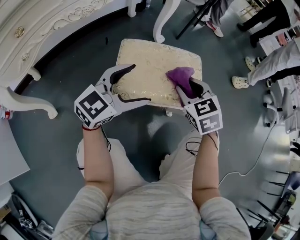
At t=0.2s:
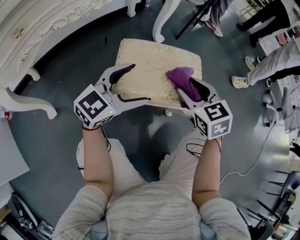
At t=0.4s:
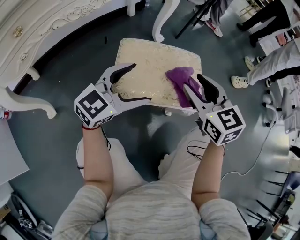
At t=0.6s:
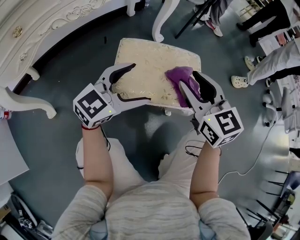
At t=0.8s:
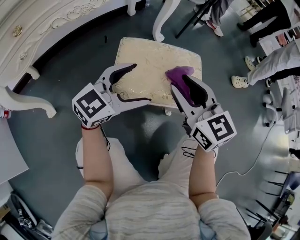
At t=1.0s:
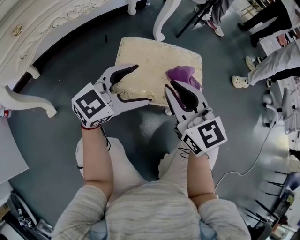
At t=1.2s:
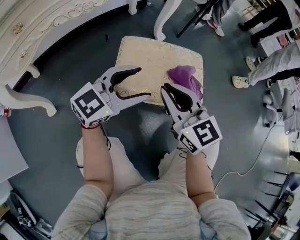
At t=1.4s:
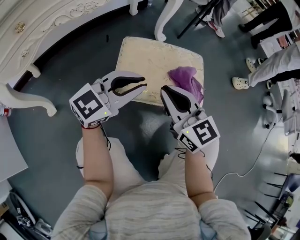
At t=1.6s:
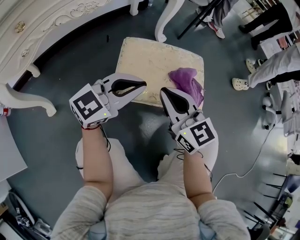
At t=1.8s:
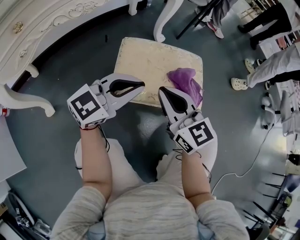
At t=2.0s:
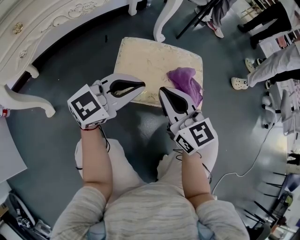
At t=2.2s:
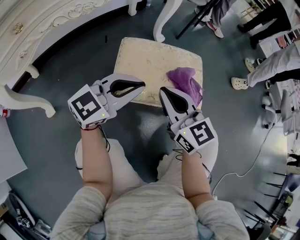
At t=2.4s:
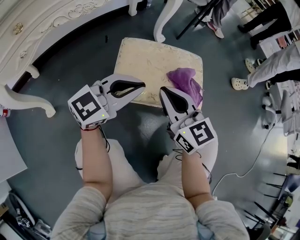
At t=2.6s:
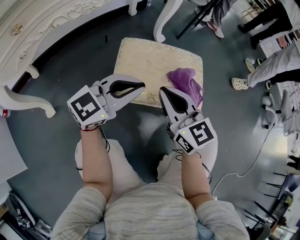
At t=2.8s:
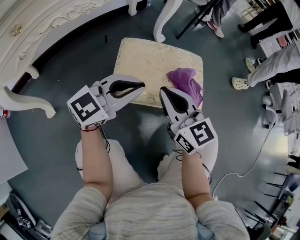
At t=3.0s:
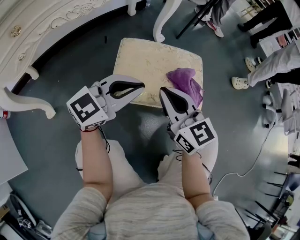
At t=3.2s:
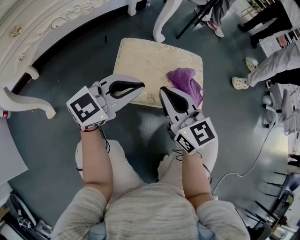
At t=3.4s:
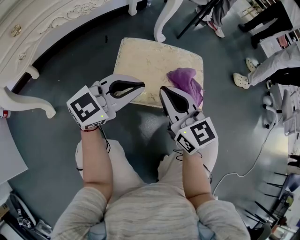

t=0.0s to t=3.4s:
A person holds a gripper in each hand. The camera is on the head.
t=0.0s to t=1.6s: The right gripper moves to the left and backward, some 10 cm, points its fingers about 30 degrees further upward, and closes its fingers. The left gripper closes its fingers.
t=1.6s to t=3.4s: Both grippers stay about where they are.

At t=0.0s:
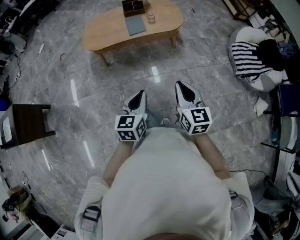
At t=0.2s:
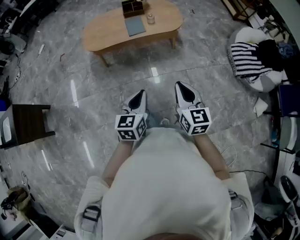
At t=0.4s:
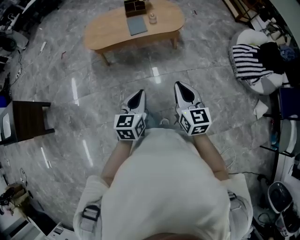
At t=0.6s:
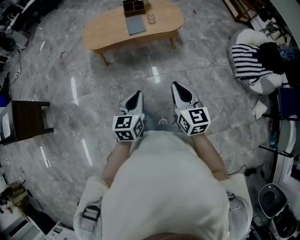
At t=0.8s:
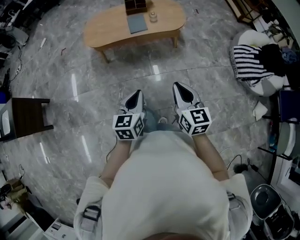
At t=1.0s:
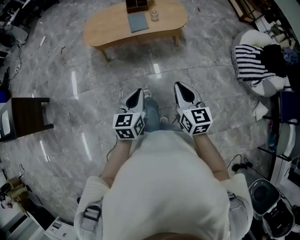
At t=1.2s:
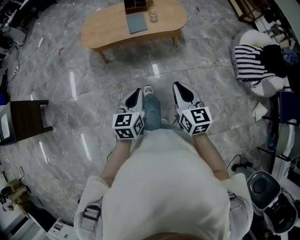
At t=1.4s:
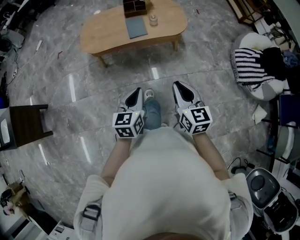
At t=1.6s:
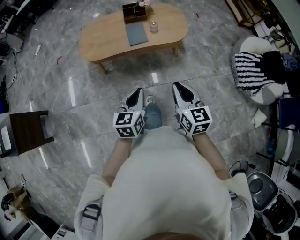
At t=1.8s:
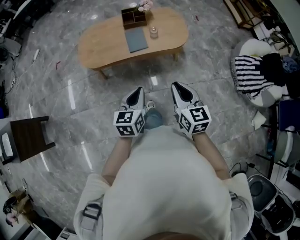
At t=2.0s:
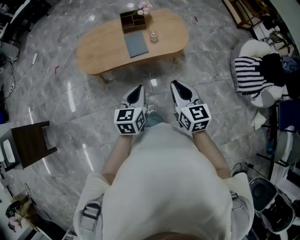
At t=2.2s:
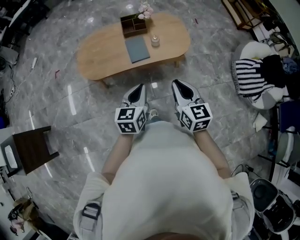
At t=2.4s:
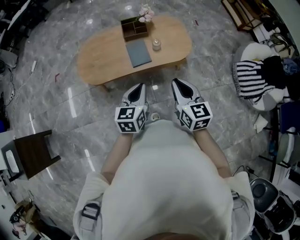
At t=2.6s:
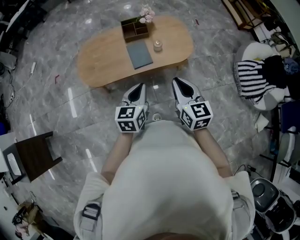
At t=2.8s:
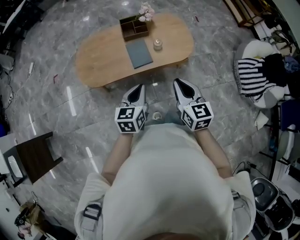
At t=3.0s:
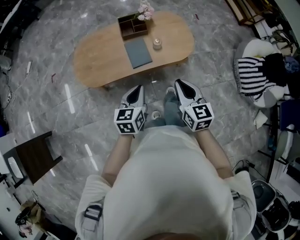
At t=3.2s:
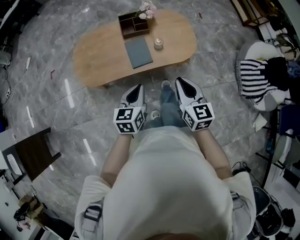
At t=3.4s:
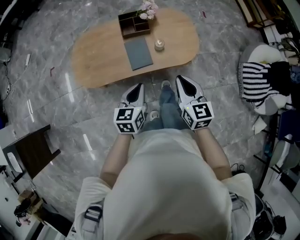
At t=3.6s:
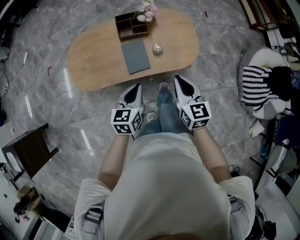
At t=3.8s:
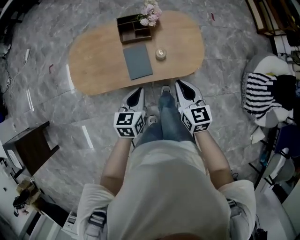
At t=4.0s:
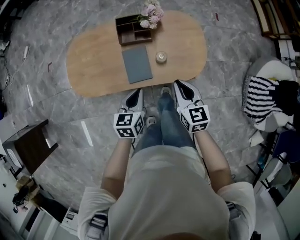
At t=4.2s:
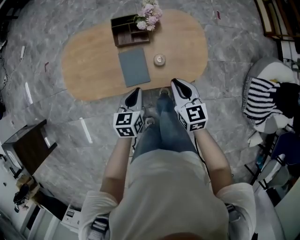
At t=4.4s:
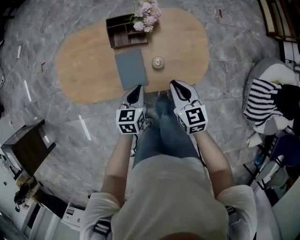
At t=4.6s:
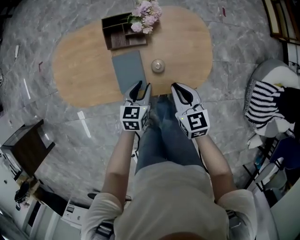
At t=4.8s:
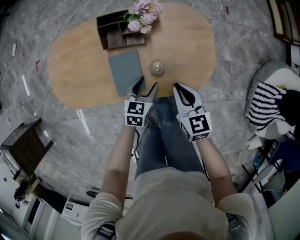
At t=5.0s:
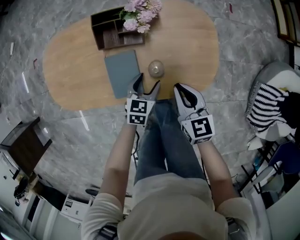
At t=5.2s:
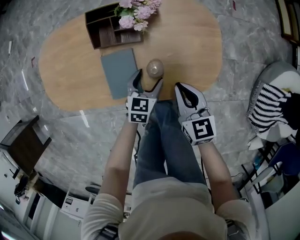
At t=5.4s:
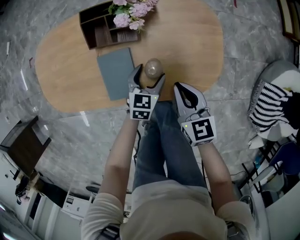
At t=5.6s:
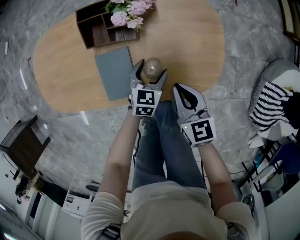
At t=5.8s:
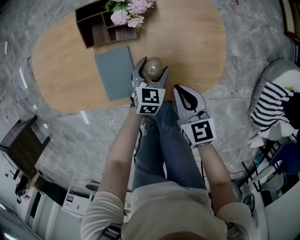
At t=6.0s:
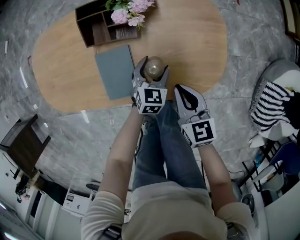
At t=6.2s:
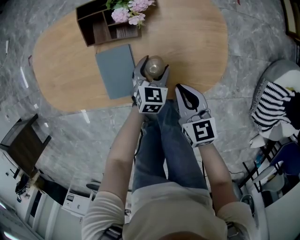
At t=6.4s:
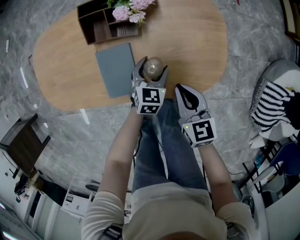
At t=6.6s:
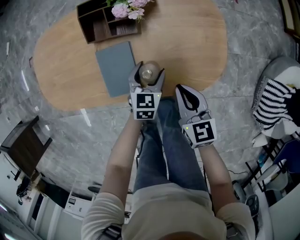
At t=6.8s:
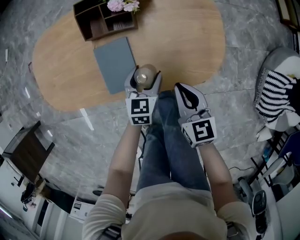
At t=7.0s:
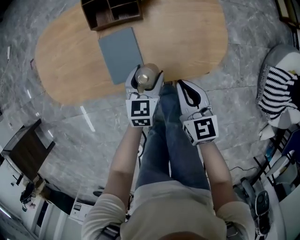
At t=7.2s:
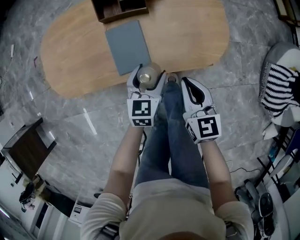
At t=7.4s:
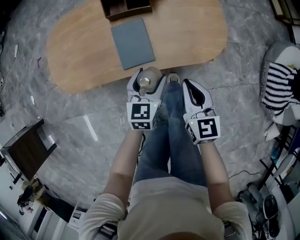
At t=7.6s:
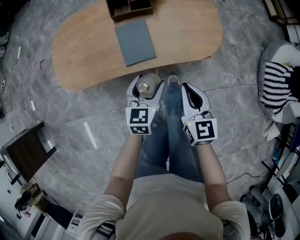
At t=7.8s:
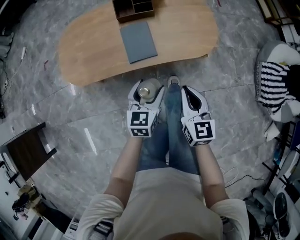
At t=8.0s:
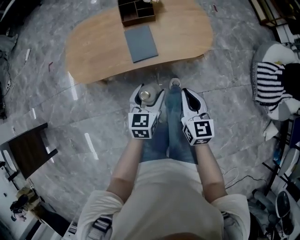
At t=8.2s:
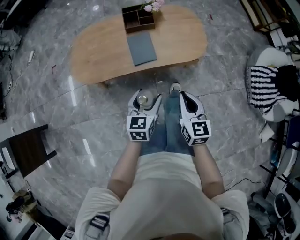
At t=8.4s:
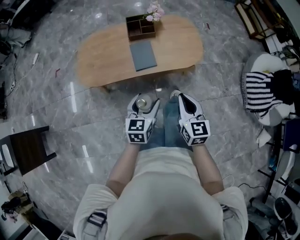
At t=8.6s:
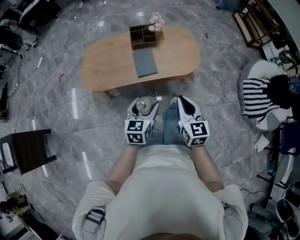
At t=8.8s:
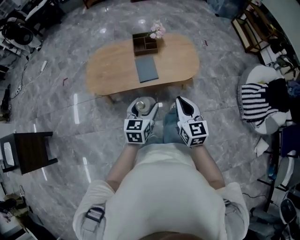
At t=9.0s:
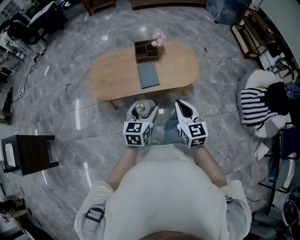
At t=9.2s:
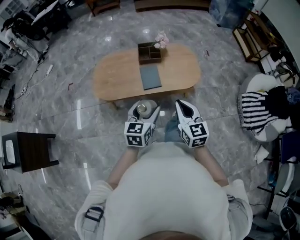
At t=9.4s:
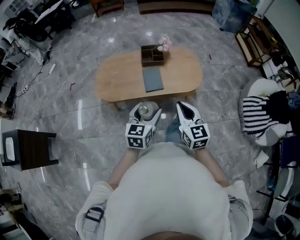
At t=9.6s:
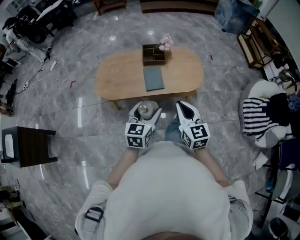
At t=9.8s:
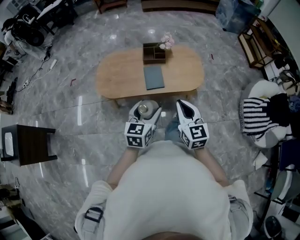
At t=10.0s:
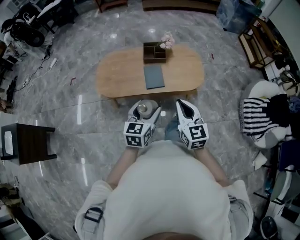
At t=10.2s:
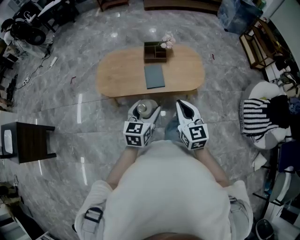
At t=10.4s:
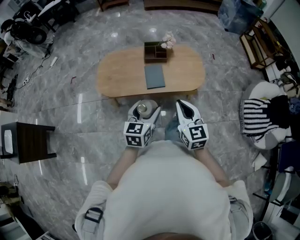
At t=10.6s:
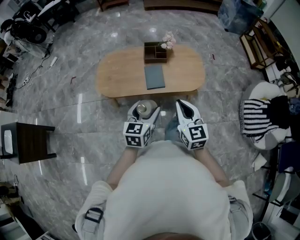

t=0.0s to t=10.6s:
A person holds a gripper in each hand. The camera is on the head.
t=0.0s to t=1.6s: The grippers both shift forward by some 15 cm.
t=1.6s to t=3.0s: Both grippers move forward, some 25 cm.
t=3.0s to t=4.6s: The two grippers go about 35 cm forward and downward.
t=4.6s to t=6.0s: The right gripper travels downward by some 10 cm; the left gripper travels downward, to the right and forward by some 20 cm, and opens its fingers.
t=6.0s to t=7.6s: The right gripper shifts approximately 20 cm backward and upward. The left gripper goes about 30 cm backward, upward and to the left.
t=7.6s to t=9.0s: Both grippers travel together upward and backward, approximately 30 cm.
t=9.0s to t=10.6s: There are only small adjustments of the grippers.

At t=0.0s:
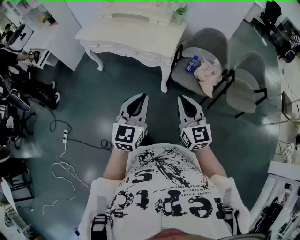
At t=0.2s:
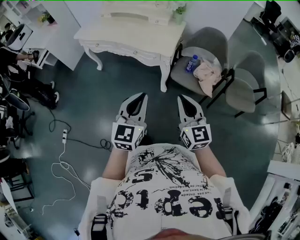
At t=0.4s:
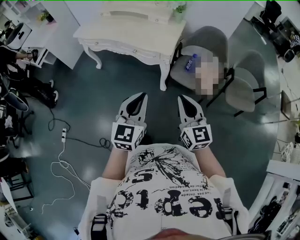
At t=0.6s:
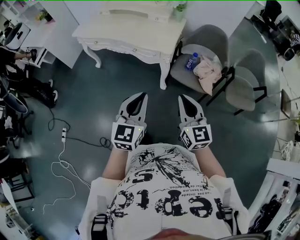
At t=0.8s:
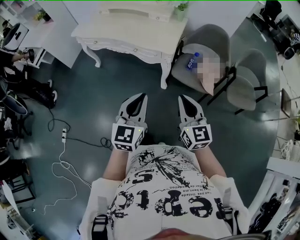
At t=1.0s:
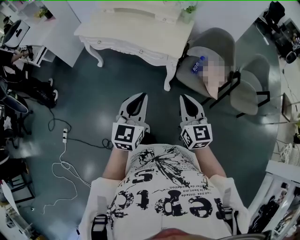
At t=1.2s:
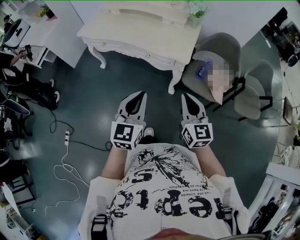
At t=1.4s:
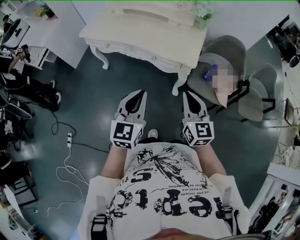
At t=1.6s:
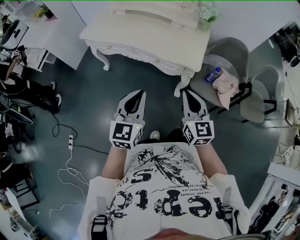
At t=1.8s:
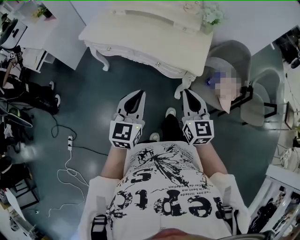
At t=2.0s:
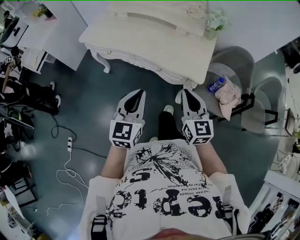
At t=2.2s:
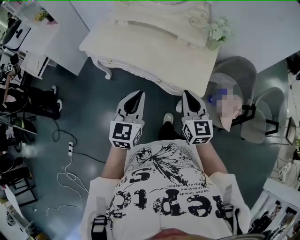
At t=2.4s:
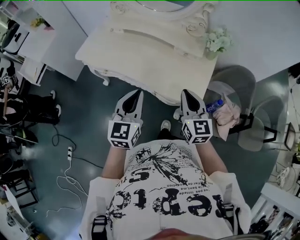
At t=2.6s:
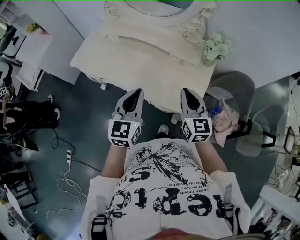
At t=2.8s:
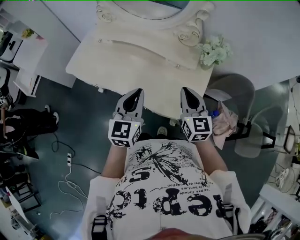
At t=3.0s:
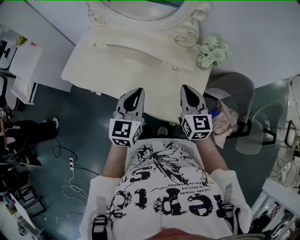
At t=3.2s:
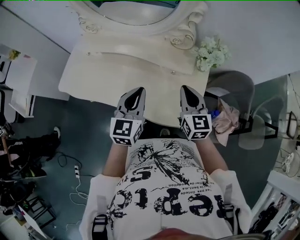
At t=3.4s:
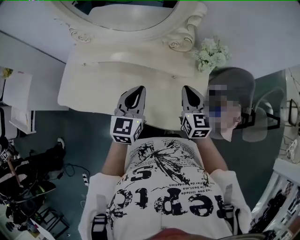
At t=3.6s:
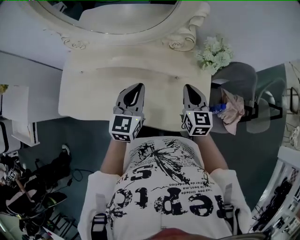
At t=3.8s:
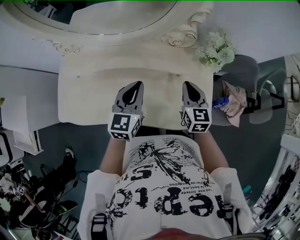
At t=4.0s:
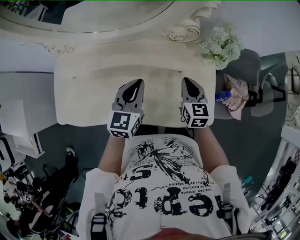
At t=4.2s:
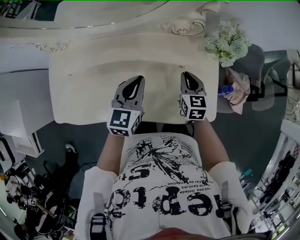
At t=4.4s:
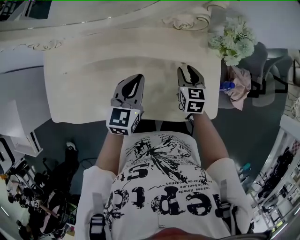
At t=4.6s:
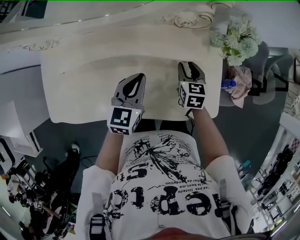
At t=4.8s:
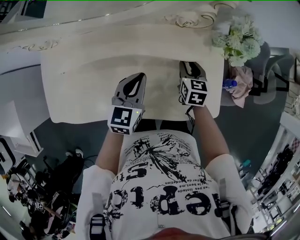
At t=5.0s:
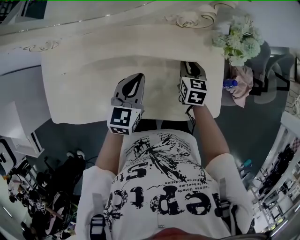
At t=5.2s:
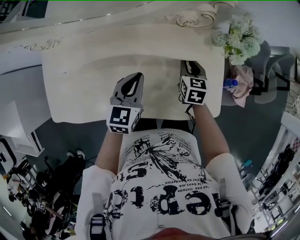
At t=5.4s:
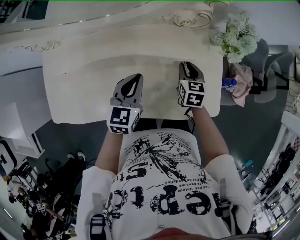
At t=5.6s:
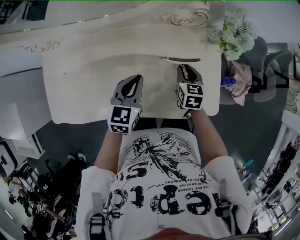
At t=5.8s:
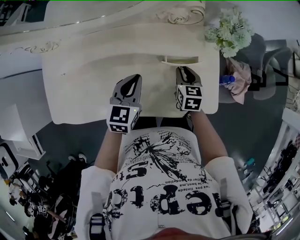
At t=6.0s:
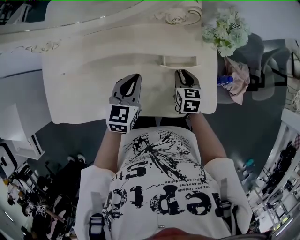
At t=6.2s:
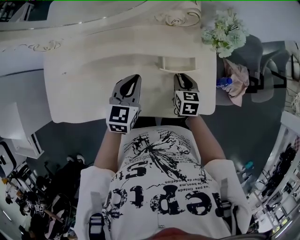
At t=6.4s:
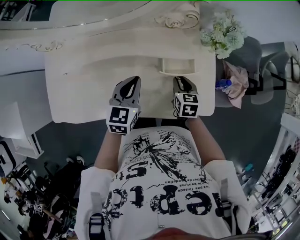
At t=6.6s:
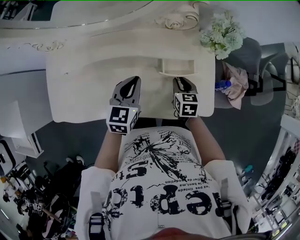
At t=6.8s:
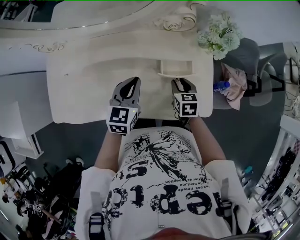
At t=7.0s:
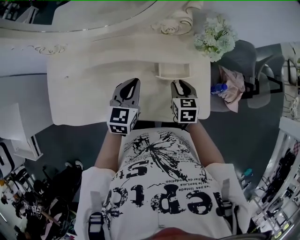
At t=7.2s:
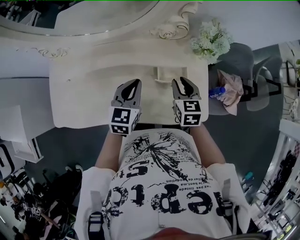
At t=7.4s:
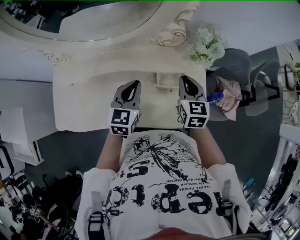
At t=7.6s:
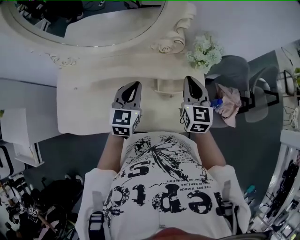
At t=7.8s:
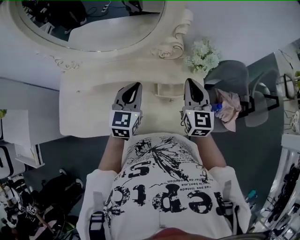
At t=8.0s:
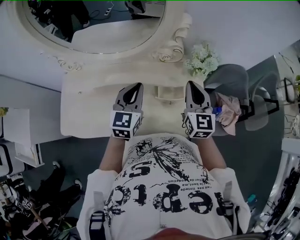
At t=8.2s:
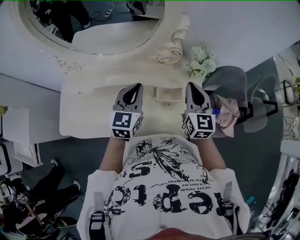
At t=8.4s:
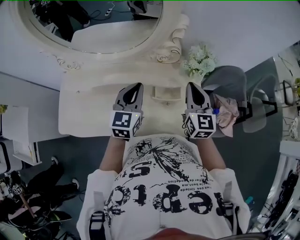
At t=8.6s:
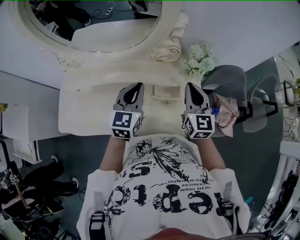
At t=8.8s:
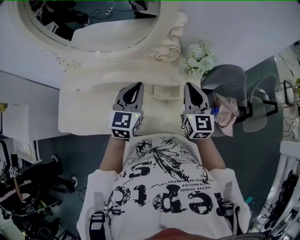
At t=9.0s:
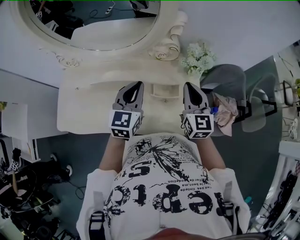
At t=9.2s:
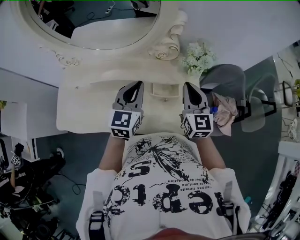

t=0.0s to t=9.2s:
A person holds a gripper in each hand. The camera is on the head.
t=0.0s to t=1.6s: The left gripper is displaced to the left and forward by approximately 25 cm; the right gripper moves forward and to the left, about 25 cm.
t=1.6s to t=3.0s: The two grippers travel together, forward, approximately 40 cm.
t=3.0s to t=4.6s: The left gripper changes place by some 25 cm, and changes its angle by approximately 30 degrees, while the right gripper heads downward, covering approximately 20 cm, changes its angle by roughly 40 degrees, and opens up.
t=4.6s to t=6.2s: The right gripper is displaced backward by about 5 cm.
t=6.2s to t=7.6s: The left gripper shifts approximately 10 cm upward, while the right gripper goes approximately 20 cm upward, and swivels about 30 degrees.
t=7.6s to t=9.2s: The left gripper goes some 5 cm upward.
